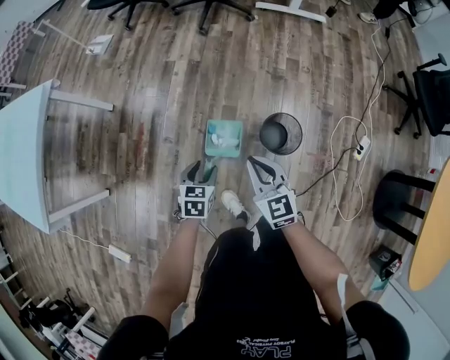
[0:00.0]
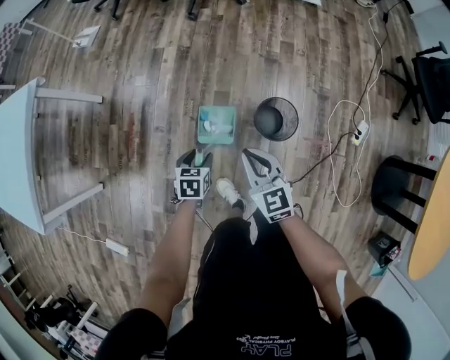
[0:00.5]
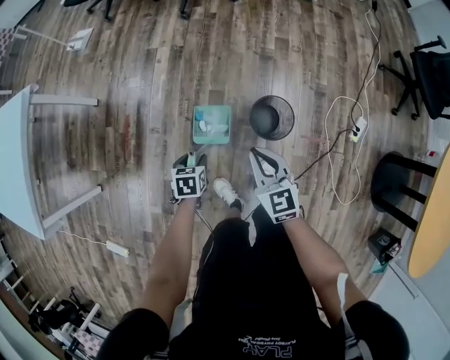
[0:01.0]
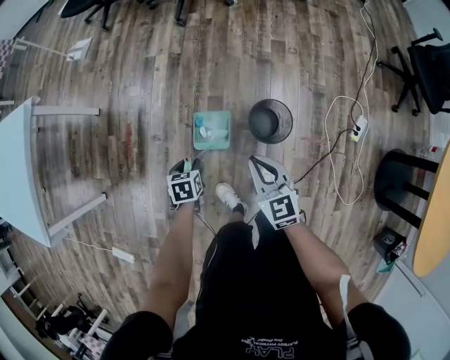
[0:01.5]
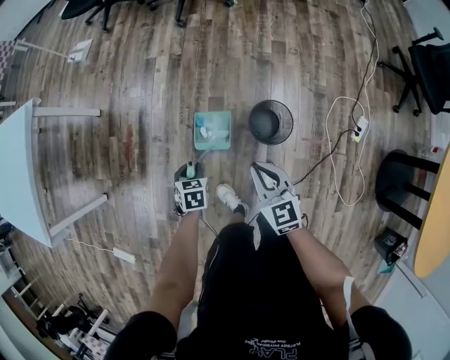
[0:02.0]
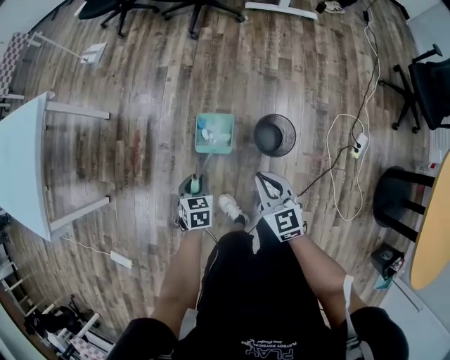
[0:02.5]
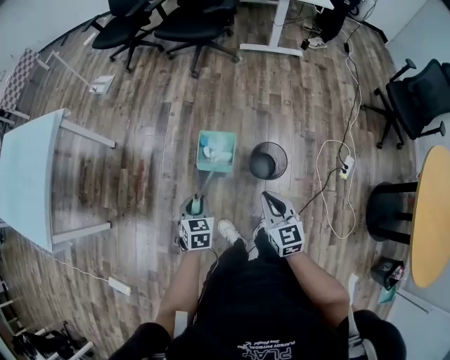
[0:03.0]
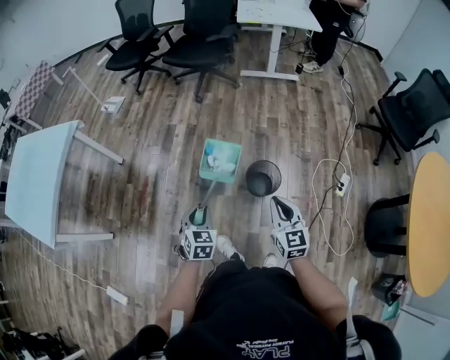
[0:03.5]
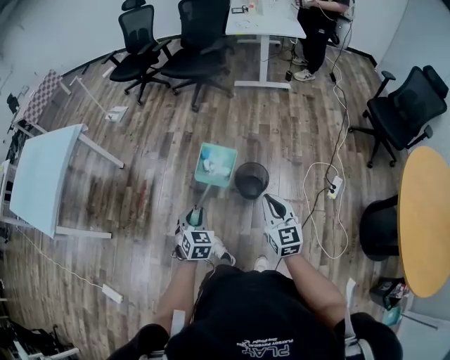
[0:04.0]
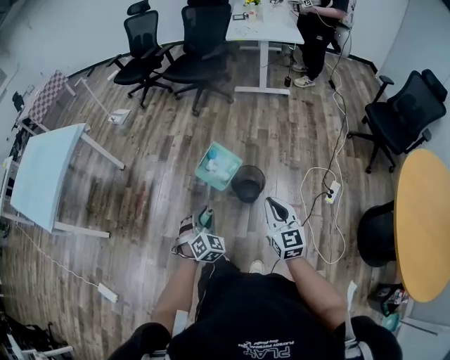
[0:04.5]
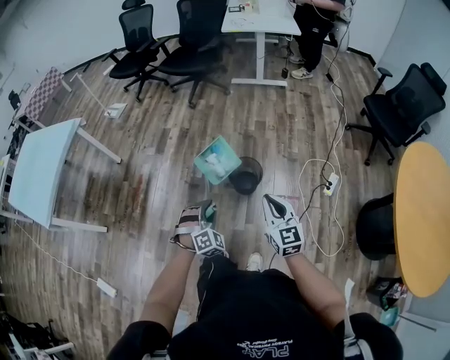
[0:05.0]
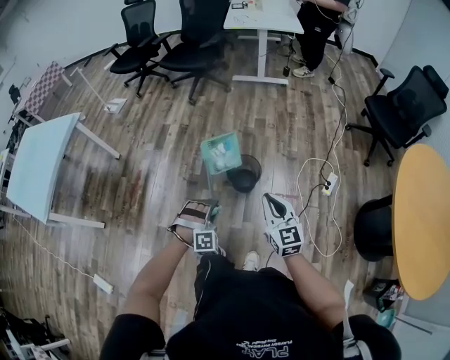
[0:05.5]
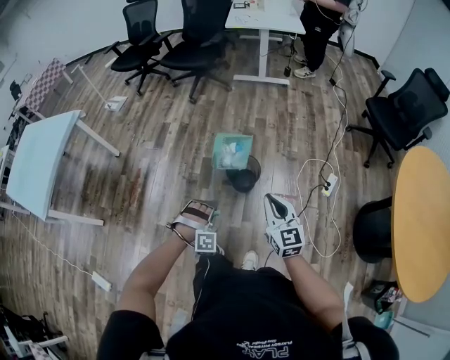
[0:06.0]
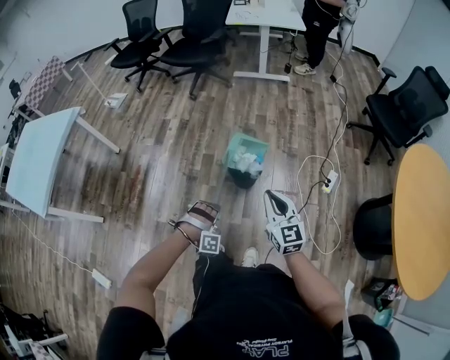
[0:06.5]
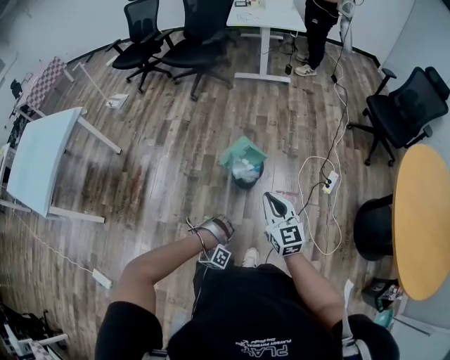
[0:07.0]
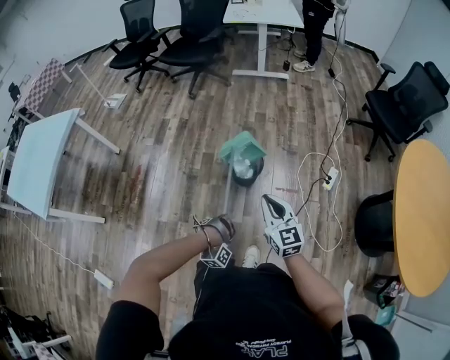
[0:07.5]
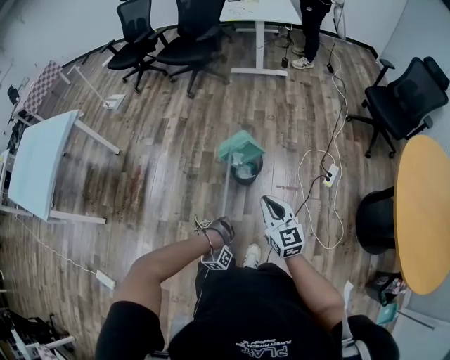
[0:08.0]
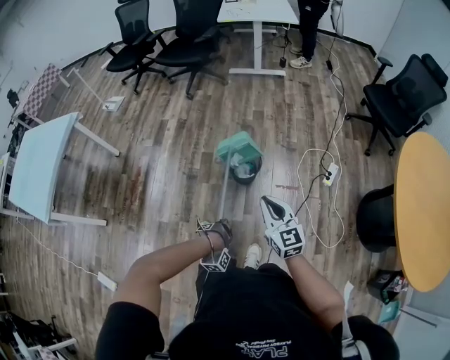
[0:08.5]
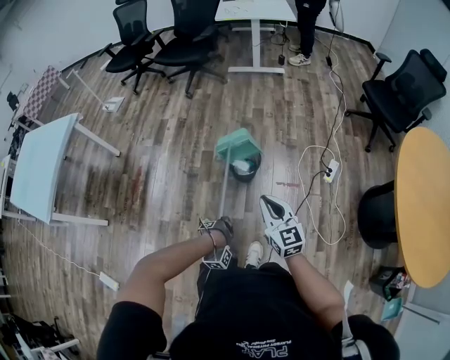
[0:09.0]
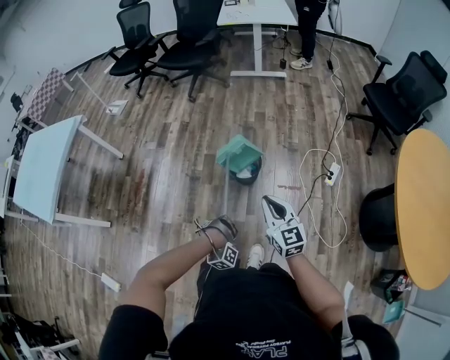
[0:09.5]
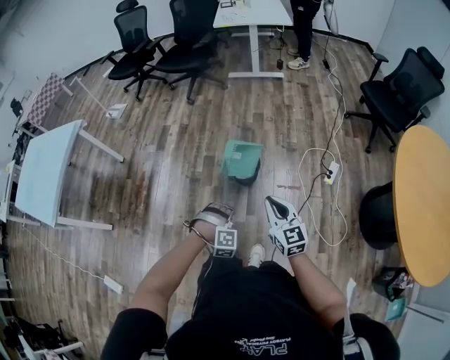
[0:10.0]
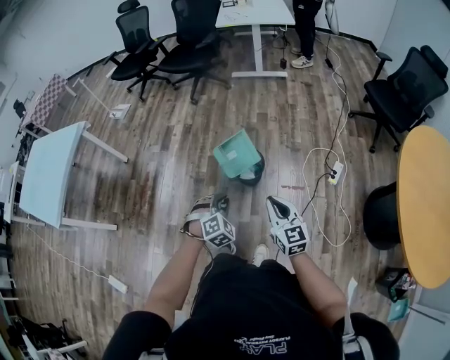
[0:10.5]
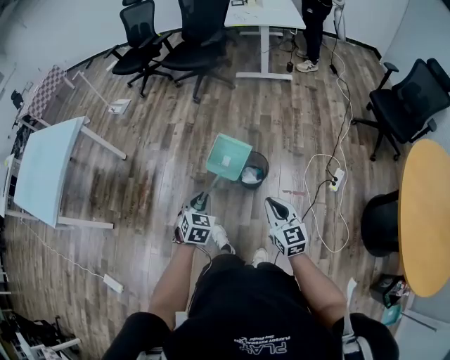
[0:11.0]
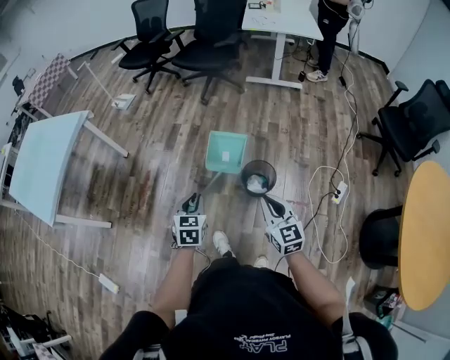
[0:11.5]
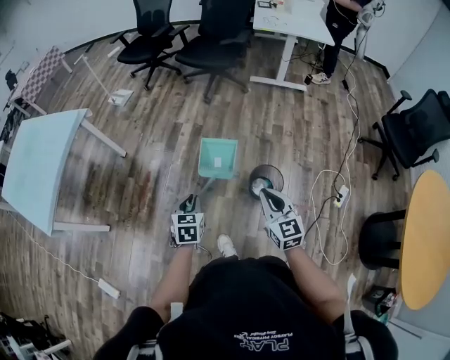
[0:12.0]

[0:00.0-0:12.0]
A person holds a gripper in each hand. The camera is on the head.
0:00.0 to 0:02.0: The right gripper shifts some 5 cm to the right. The left gripper moves downward, some 5 cm, and closes its fingers.
0:02.0 to 0:04.0: The left gripper goes roughly 30 cm upward and backward, and turns by about 30 degrees, while the right gripper goes approximately 25 cm backward, upward and to the right.
0:04.0 to 0:06.0: The left gripper moves to the right, backward and downward, roughly 15 cm, and rolls clockwise, seen from behind, by roughly 70 degrees, while the right gripper shifts some 5 cm backward.
0:06.0 to 0:08.0: The left gripper shifts about 15 cm downward and backward, and rotates around the line of its fingers by approximately 60 degrees, clockwise from behind.
0:08.0 to 0:10.0: The left gripper heads upward and to the right, covering roughly 15 cm, and twists some 50 degrees counterclockwise, seen from behind.
0:10.0 to 0:12.0: The right gripper is displaced forward and to the left by about 30 cm. The left gripper shifts some 40 cm to the left and forward, and rotates around the line of its fingers by some 100 degrees, counterclockwise from behind.

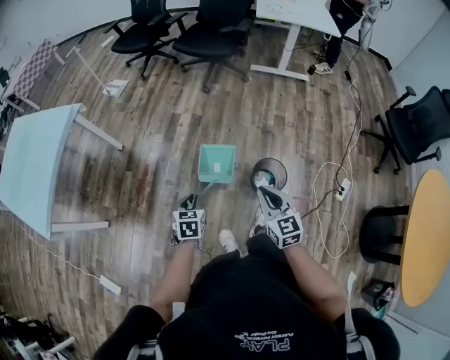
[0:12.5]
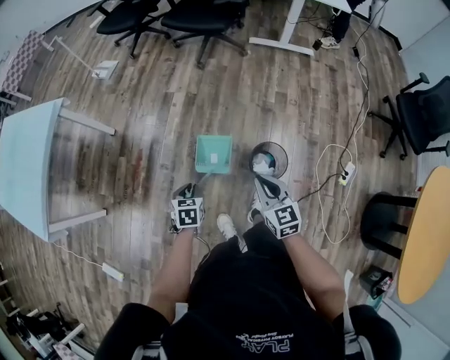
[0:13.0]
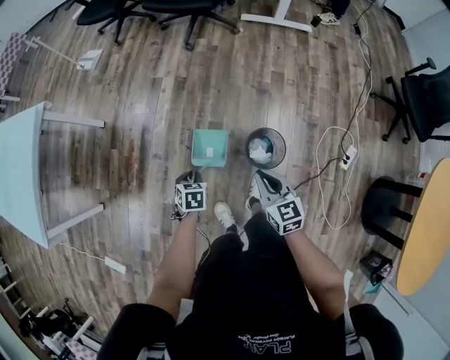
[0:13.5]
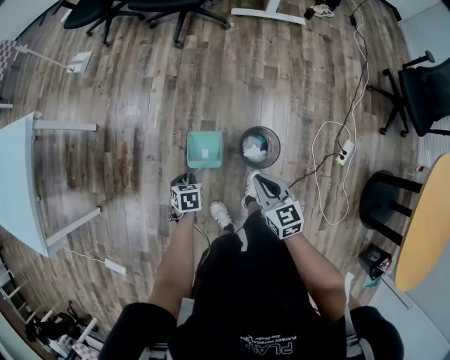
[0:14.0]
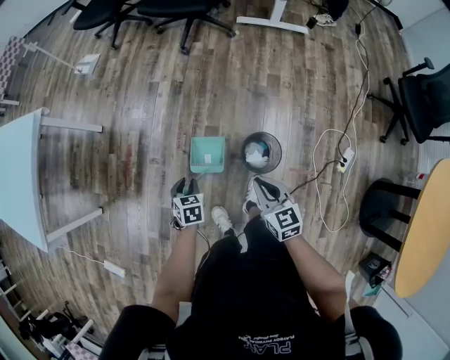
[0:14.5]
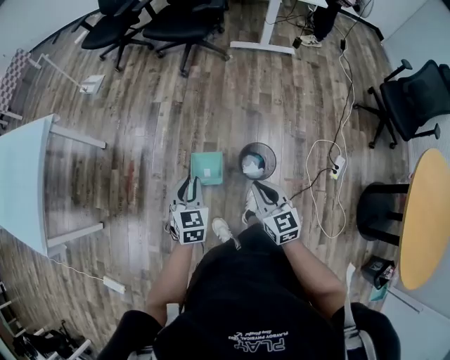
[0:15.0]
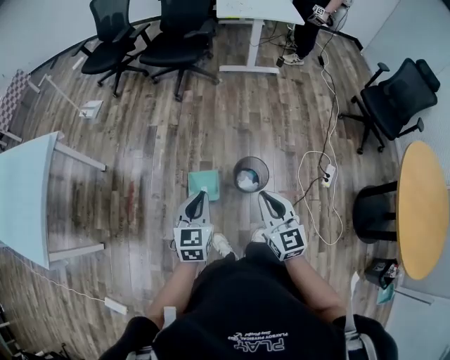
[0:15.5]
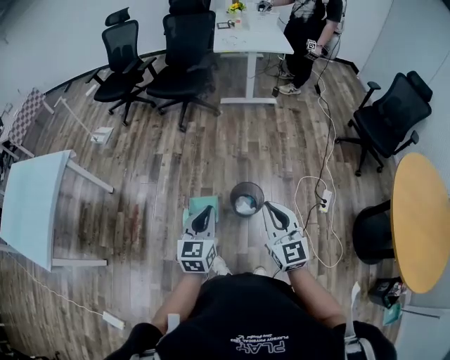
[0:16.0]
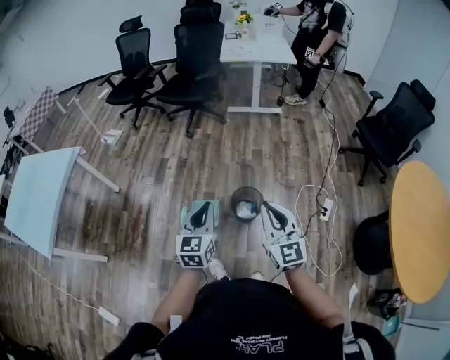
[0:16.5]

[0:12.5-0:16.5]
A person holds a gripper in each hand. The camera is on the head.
0:12.5 to 0:14.5: The grippers both shift downward, to the right and forward by approximately 15 cm.
0:14.5 to 0:16.5: The right gripper moves upward and backward, approximately 35 cm, and changes its angle by approximately 40 degrees. The left gripper goes approximately 40 cm upward, backward and to the right, and tilts its fingers roughly 40 degrees upward.

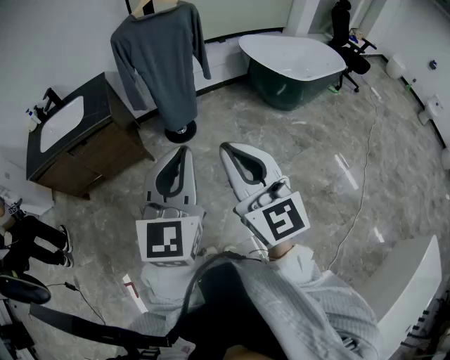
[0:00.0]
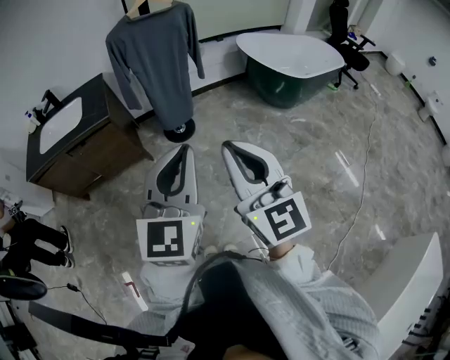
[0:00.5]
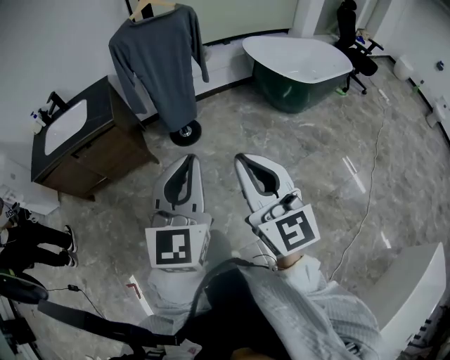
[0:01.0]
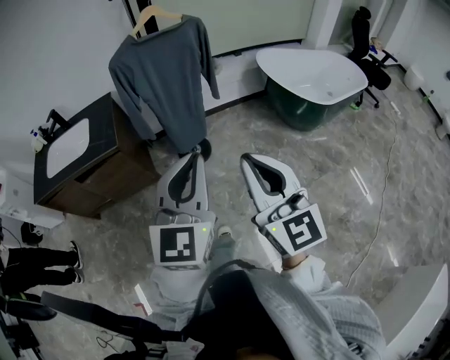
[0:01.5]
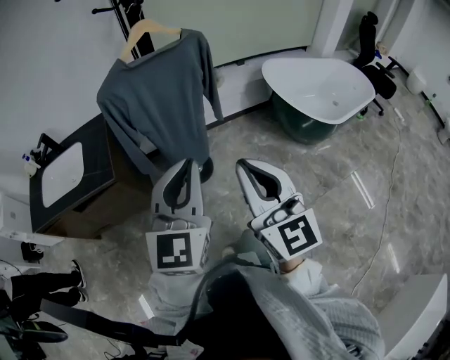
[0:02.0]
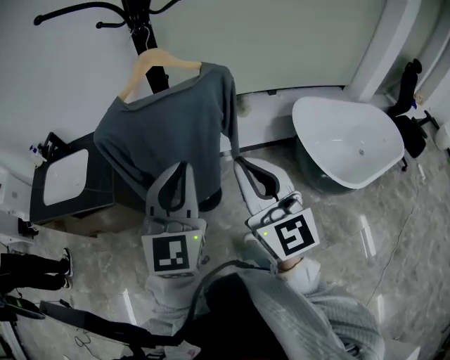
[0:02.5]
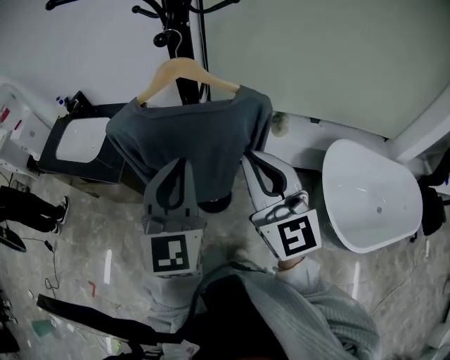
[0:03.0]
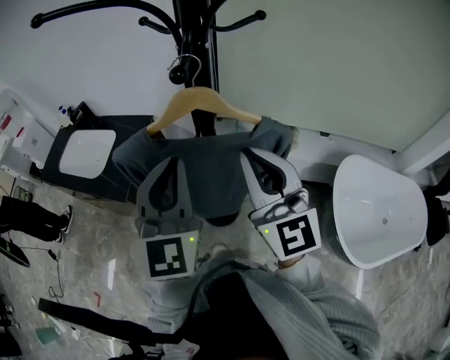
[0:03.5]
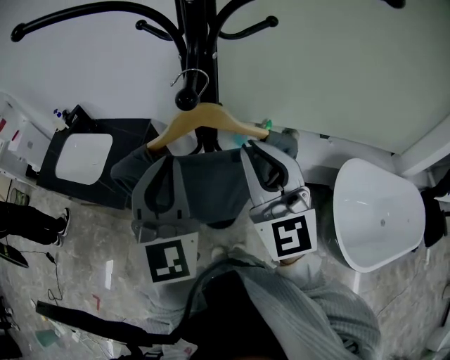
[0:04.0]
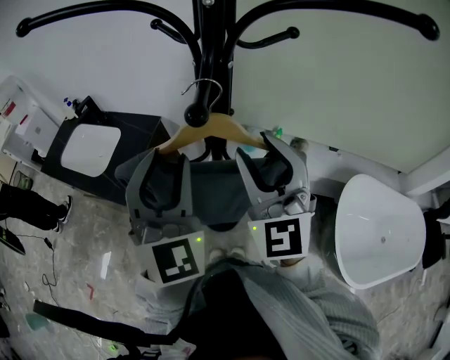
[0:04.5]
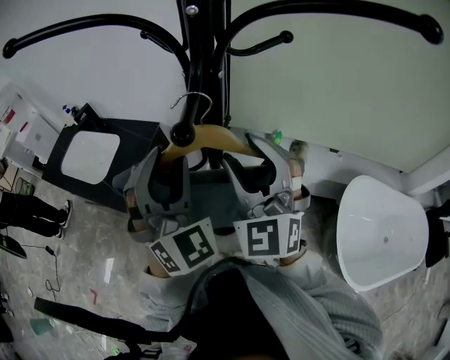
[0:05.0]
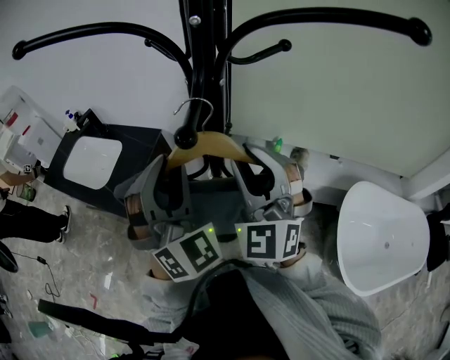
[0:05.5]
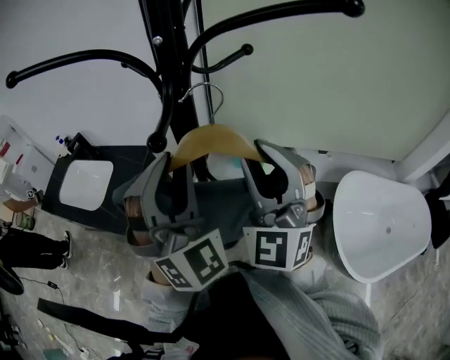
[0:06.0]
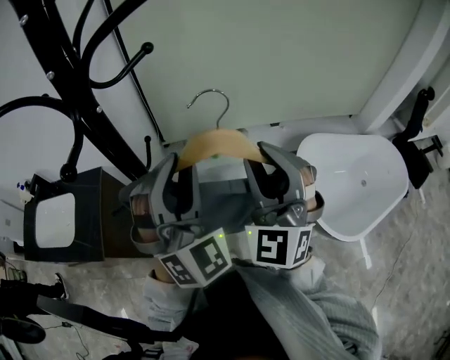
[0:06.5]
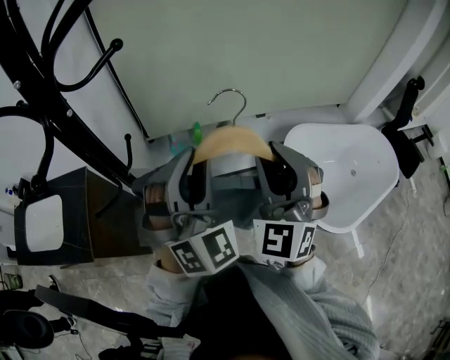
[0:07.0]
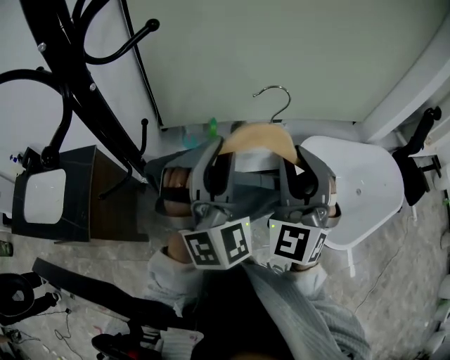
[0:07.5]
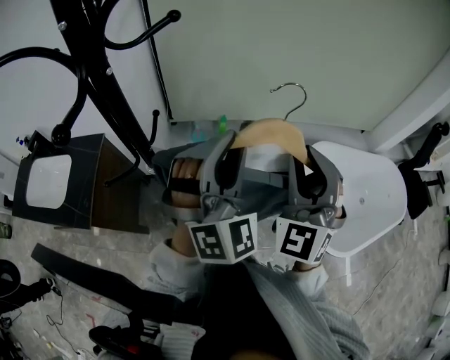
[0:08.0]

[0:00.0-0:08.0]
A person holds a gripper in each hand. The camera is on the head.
0:00.0 to 0:02.0: The two grippers go roughly 35 cm forward.
0:02.0 to 0:04.0: The left gripper changes place by some 40 cm, and turns by about 40 degrees, while the right gripper ends up approximately 50 cm from where it was, and swivels approximately 30 degrees.
0:04.0 to 0:06.0: The left gripper heads to the right, covering approximately 5 cm, turns by approximately 40 degrees, and opens; the right gripper moves some 5 cm, swivels approximately 30 degrees, and opens.
0:06.0 to 0:08.0: The right gripper changes place by roughly 20 cm, and rotates approximately 30 degrees, while the left gripper shifts by some 20 cm, and swivels approximately 30 degrees.

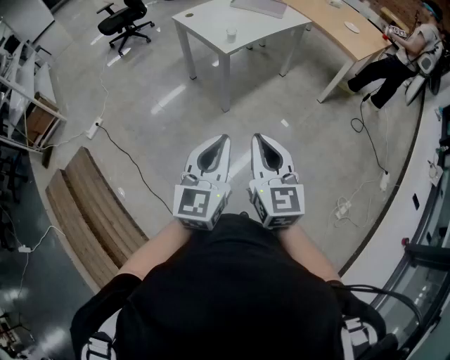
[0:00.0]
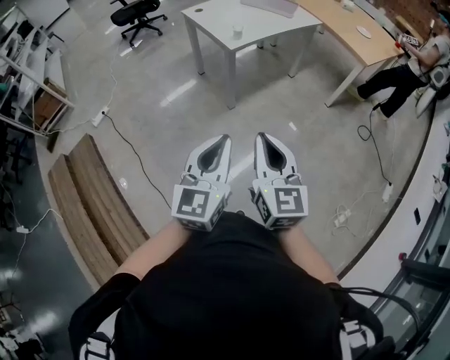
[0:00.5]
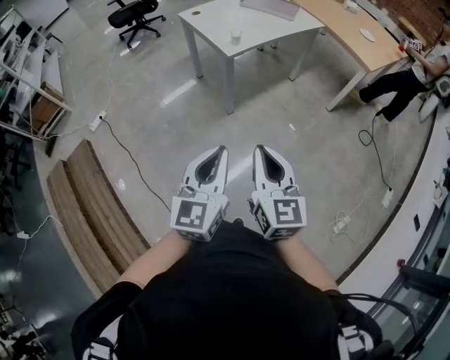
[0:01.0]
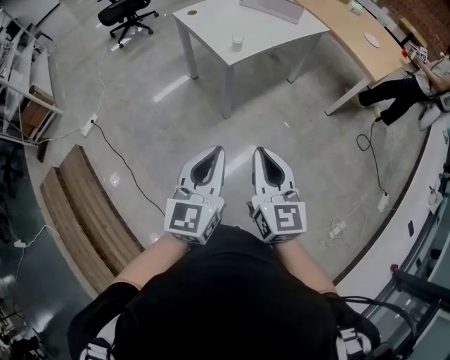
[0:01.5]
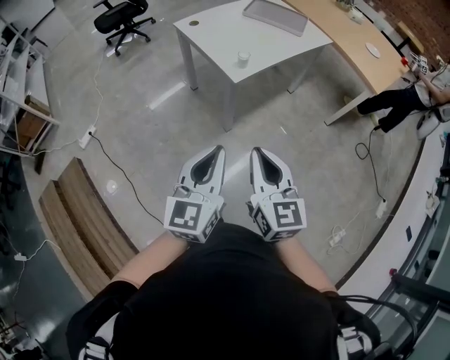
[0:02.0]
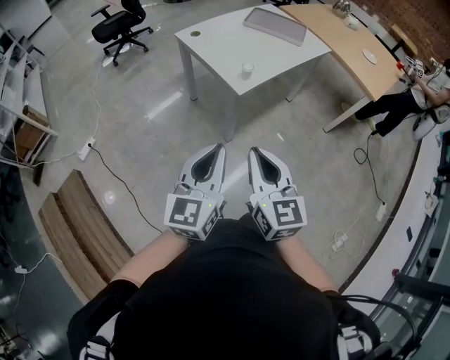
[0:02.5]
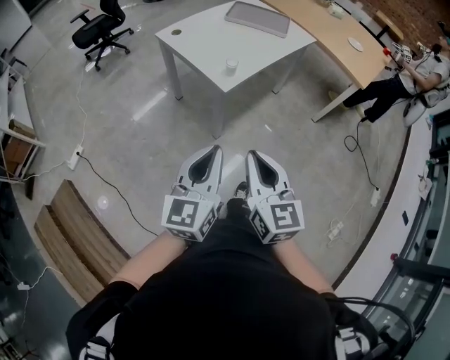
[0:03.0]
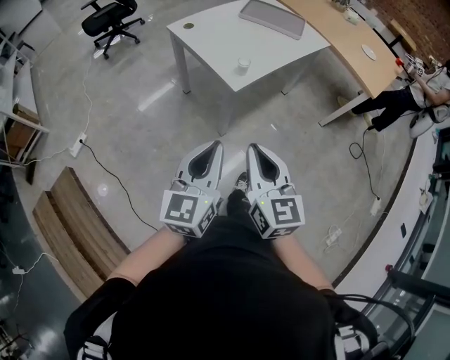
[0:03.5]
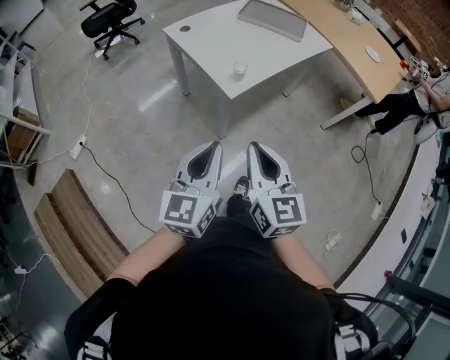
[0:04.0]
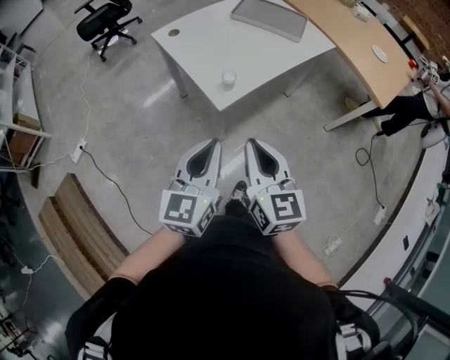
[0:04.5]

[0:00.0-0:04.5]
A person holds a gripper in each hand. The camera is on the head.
0:00.0 to 0:02.0: The two grippers go roughly 25 cm forward.
0:02.0 to 0:04.5: The two grippers go about 25 cm forward.
